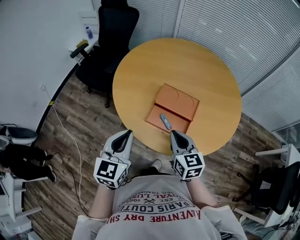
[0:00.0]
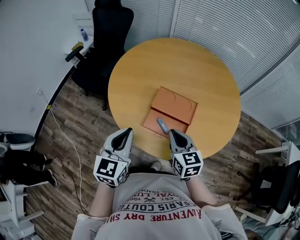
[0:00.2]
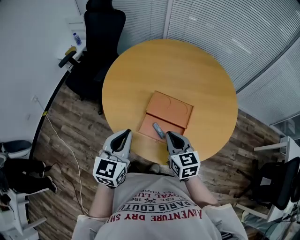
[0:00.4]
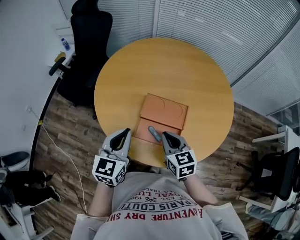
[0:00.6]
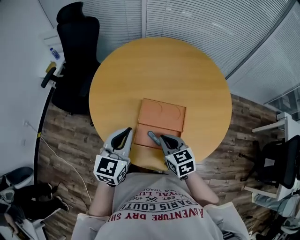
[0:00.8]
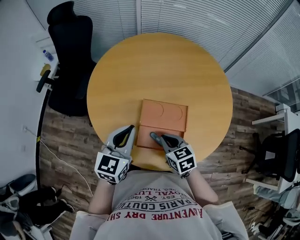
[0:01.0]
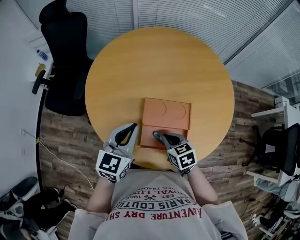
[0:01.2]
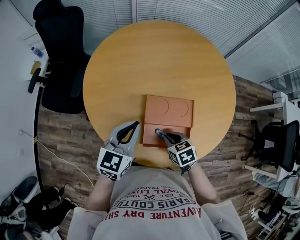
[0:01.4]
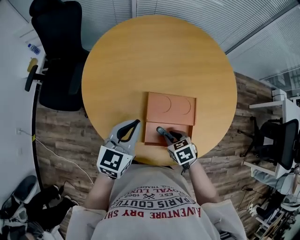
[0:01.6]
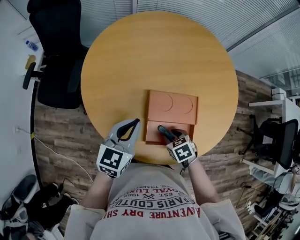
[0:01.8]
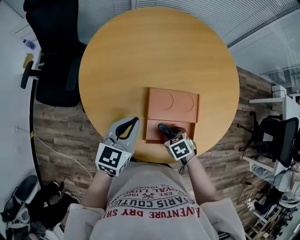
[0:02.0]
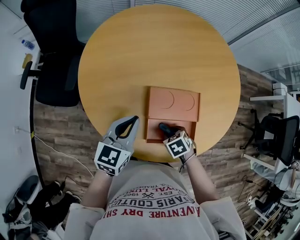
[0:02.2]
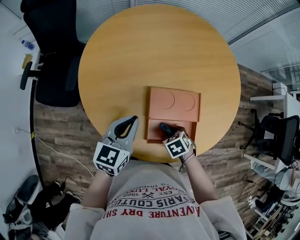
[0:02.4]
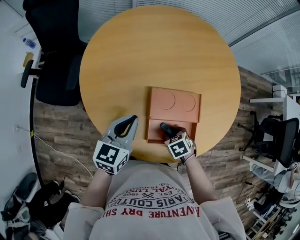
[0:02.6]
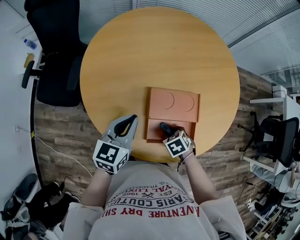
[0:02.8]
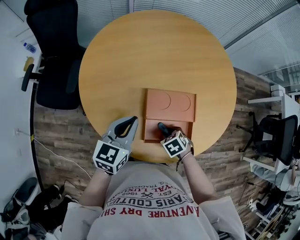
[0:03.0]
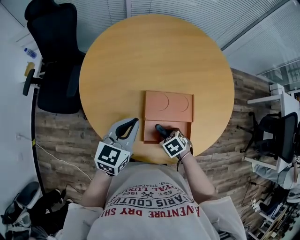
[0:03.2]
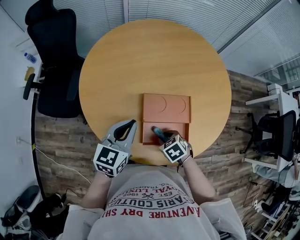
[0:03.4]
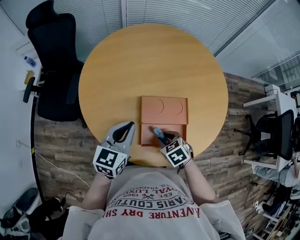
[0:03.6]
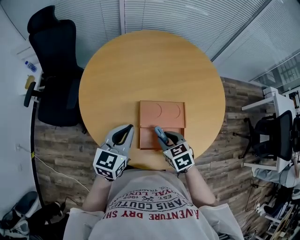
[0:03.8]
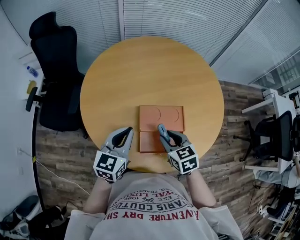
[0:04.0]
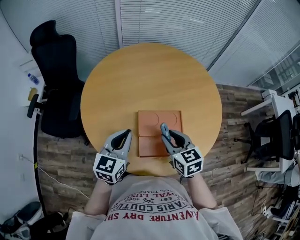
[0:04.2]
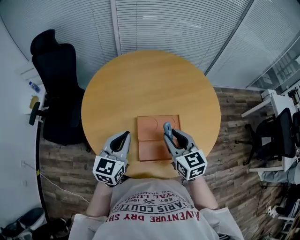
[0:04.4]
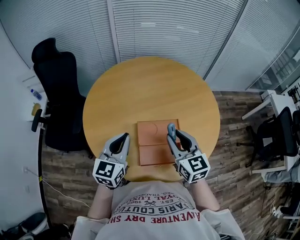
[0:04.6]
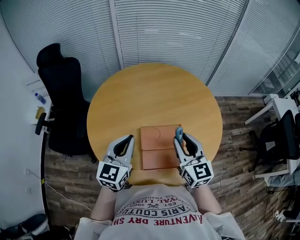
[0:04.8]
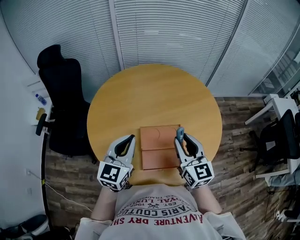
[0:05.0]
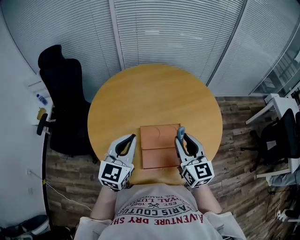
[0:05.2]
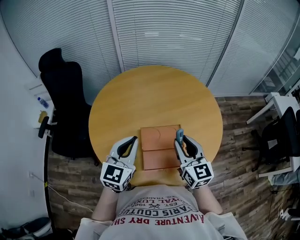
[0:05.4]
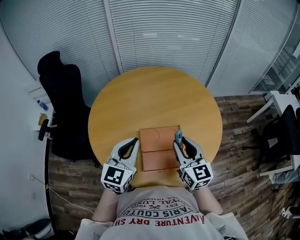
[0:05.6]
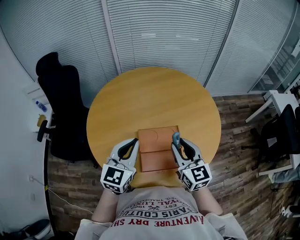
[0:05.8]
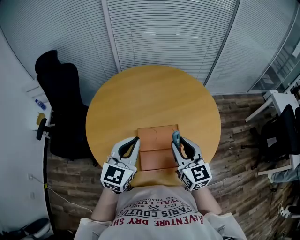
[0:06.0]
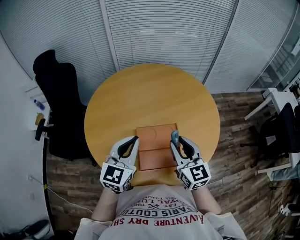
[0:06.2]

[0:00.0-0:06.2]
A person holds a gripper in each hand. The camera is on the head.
0.0 to 1.6 s: The right gripper travels downward and forward by roughly 20 cm, tilts its fingers approximately 40 degrees downward, and opens its fingers. Meanwhile the left gripper goes about 25 cm forward, and turns by roughly 30 degrees.
1.6 to 3.2 s: The grippers make only small movements.
3.2 to 4.6 s: The right gripper goes roughly 30 cm upward, and points its fingers some 60 degrees further upward; the left gripper is displaced upward by some 10 cm.
4.6 to 6.2 s: The left gripper goes approximately 5 cm to the right.

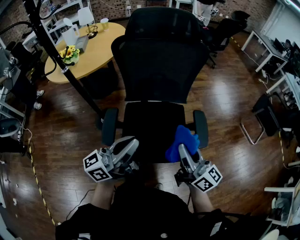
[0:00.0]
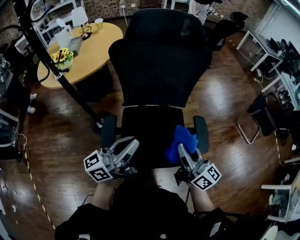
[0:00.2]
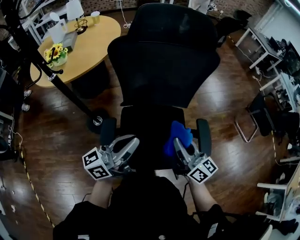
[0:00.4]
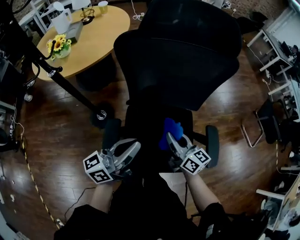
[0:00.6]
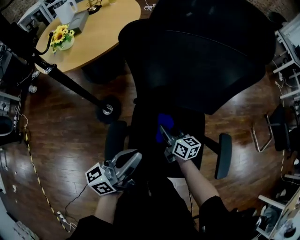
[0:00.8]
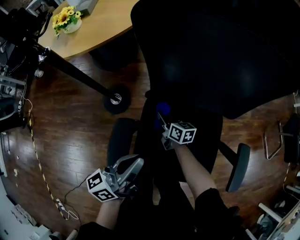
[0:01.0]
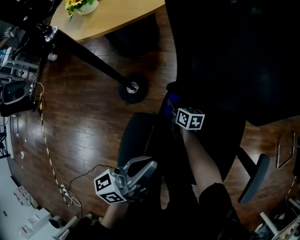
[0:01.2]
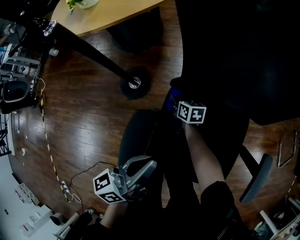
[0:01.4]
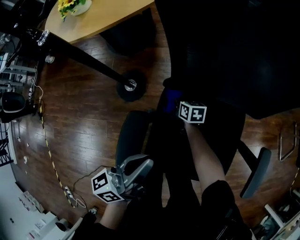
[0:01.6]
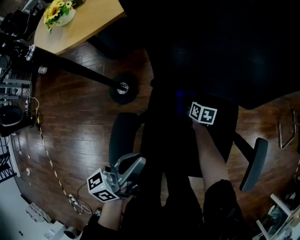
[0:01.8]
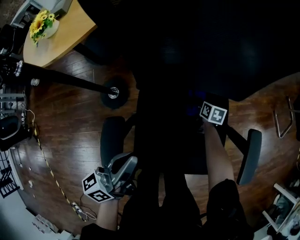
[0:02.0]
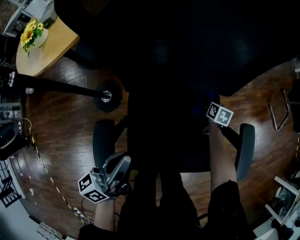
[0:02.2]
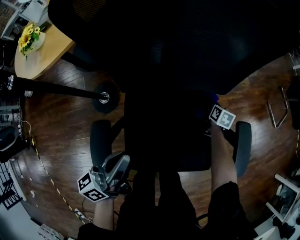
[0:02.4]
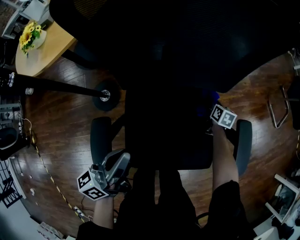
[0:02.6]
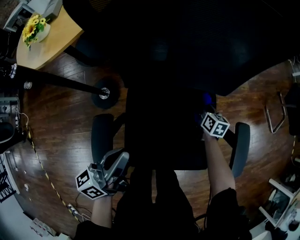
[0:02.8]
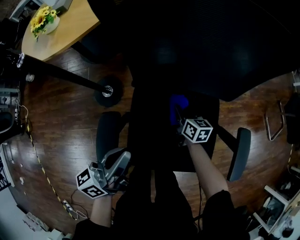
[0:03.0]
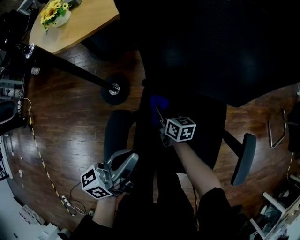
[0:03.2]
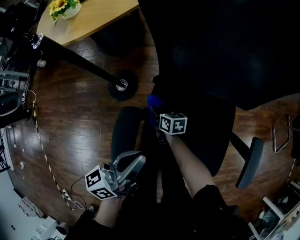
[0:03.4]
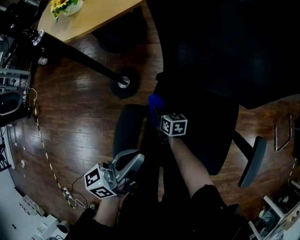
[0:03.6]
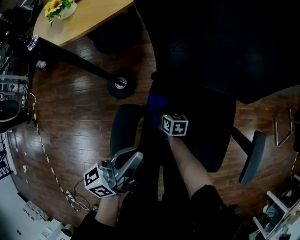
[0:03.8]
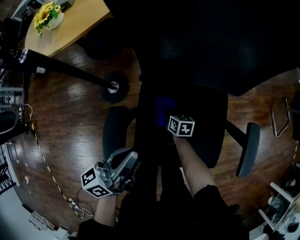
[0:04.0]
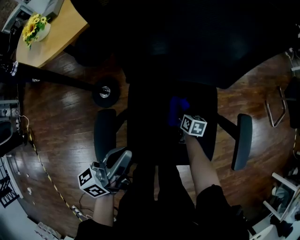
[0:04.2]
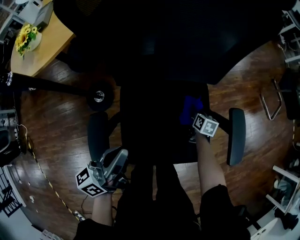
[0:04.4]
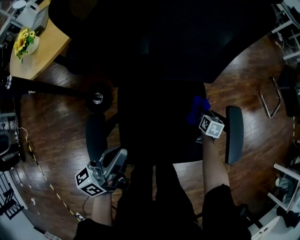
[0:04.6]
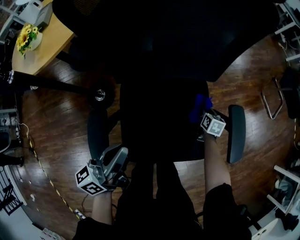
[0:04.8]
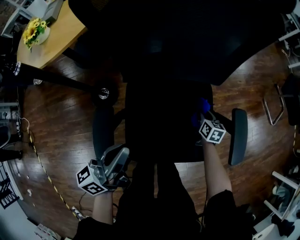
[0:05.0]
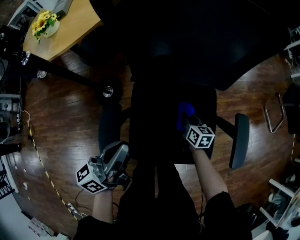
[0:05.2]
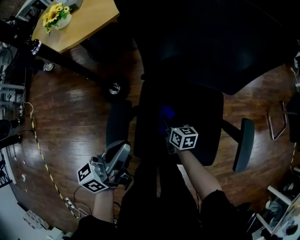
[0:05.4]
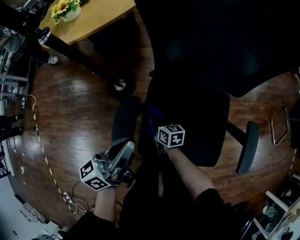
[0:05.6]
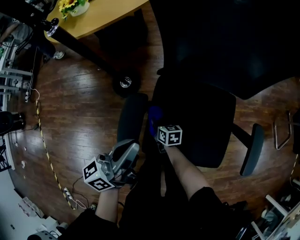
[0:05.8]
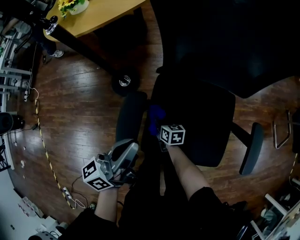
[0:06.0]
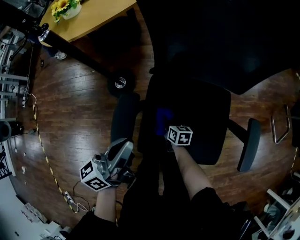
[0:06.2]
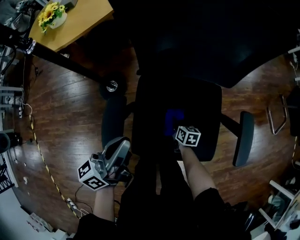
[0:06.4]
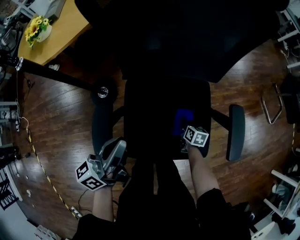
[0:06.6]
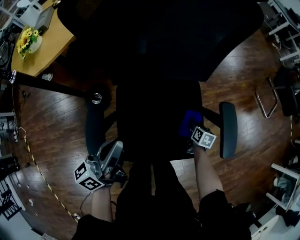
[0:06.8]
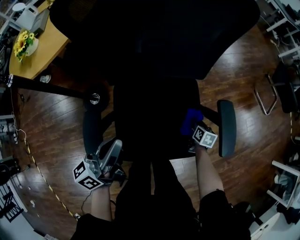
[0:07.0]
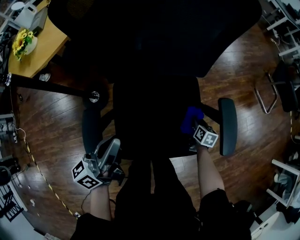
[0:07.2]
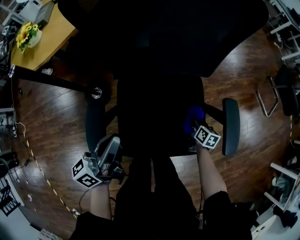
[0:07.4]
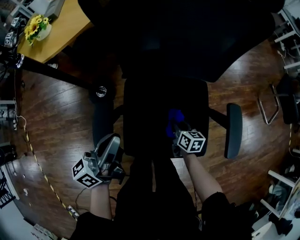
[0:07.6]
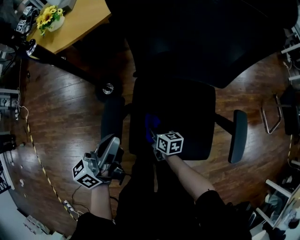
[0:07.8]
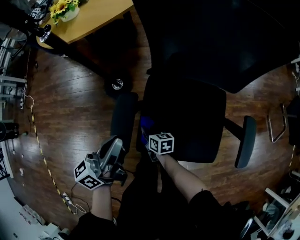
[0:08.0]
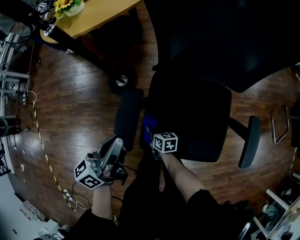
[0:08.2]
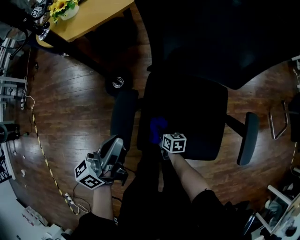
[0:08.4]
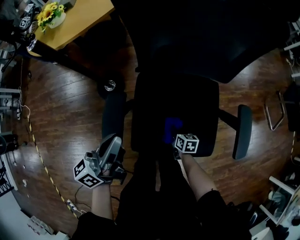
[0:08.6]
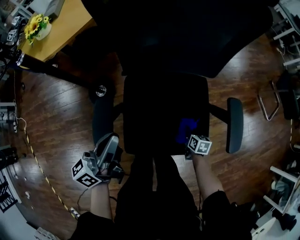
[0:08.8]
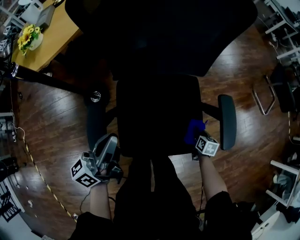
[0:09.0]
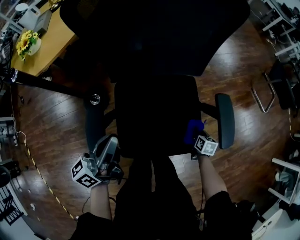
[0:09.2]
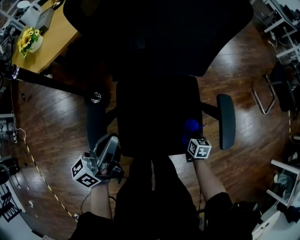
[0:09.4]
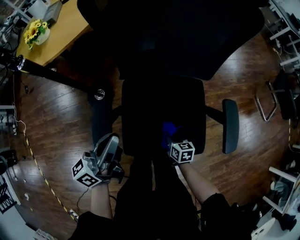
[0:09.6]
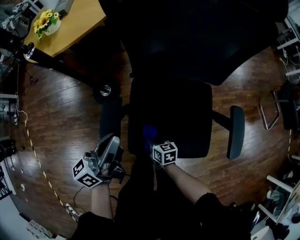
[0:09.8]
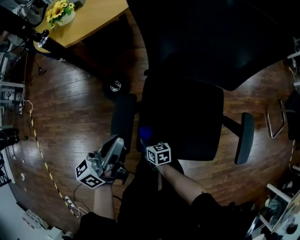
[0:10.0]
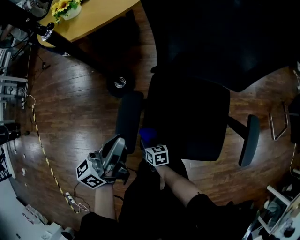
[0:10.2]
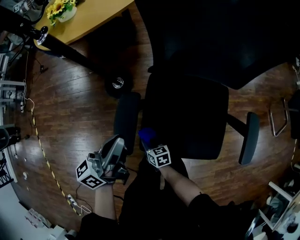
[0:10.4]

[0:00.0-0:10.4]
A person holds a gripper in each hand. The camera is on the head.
0.0 to 1.4 s: The right gripper heads downward, forward and to the left, covering approximately 70 cm, and angles its fingers downward, by some 50 degrees; the left gripper moves downward, forward and to the left, about 35 cm, and rotates some 30 degrees.
3.0 to 4.4 s: The right gripper ends up about 20 cm from where it was, and turns by some 30 degrees.
4.4 to 6.0 s: The right gripper travels upward and back again, roughly 10 cm each way, and turns by about 40 degrees. Meanwhile the left gripper ends up some 10 cm from where it was.
6.0 to 7.4 s: The right gripper changes place by some 35 cm, and swivels some 30 degrees, while the left gripper ends up about 10 cm from where it was.
9.0 to 10.4 s: The right gripper ends up about 40 cm from where it was, and turns by some 40 degrees. Meanwhile the left gripper shifts by about 10 cm.

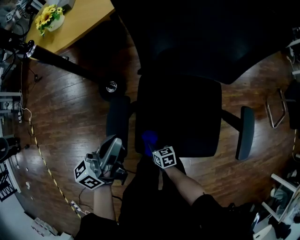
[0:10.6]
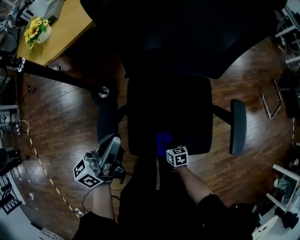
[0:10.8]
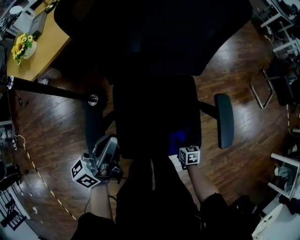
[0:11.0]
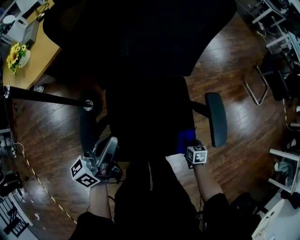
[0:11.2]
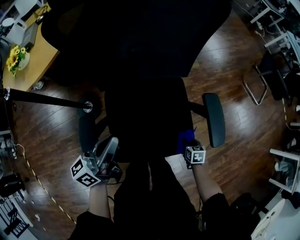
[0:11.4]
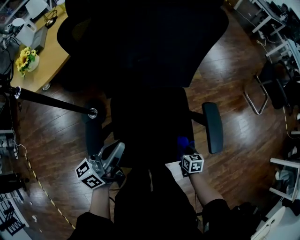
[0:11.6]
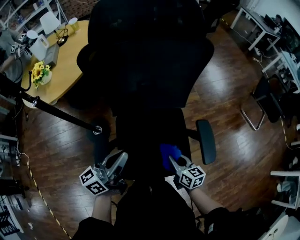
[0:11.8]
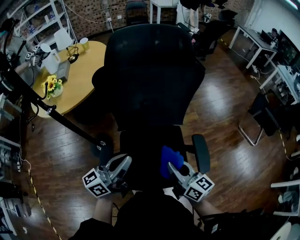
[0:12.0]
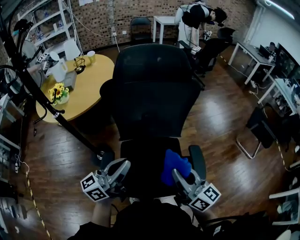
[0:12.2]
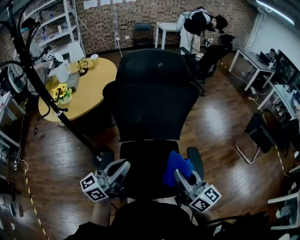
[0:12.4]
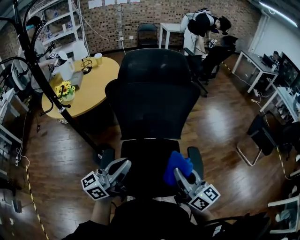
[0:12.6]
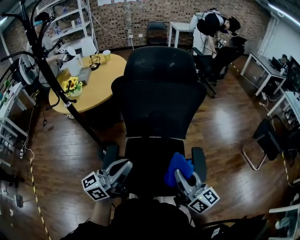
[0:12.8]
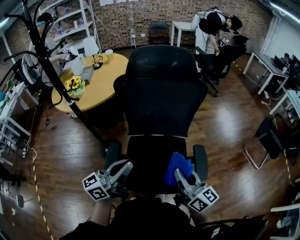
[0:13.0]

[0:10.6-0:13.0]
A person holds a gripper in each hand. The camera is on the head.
10.6 to 11.8 s: The left gripper changes place by roughly 15 cm. The right gripper shifts about 25 cm upward, and rotates some 30 degrees.
11.8 to 13.0 s: The left gripper moves upward and backward, approximately 15 cm; the right gripper is displaced upward by roughly 30 cm, and tips its fingers upward by approximately 30 degrees.

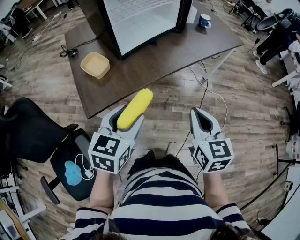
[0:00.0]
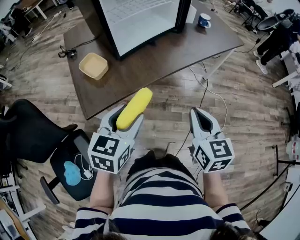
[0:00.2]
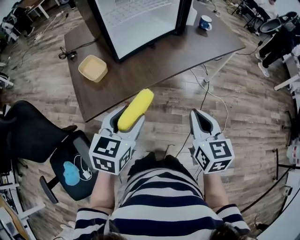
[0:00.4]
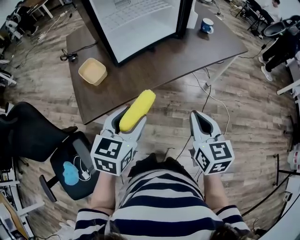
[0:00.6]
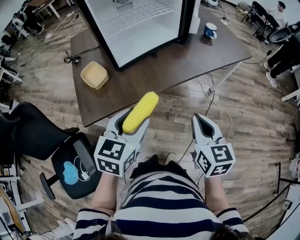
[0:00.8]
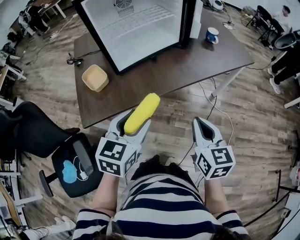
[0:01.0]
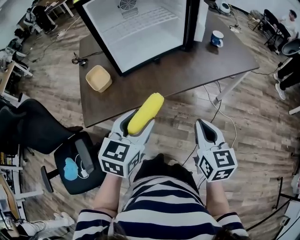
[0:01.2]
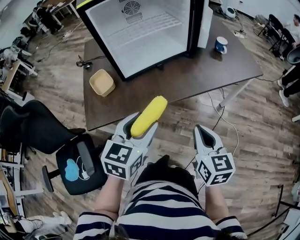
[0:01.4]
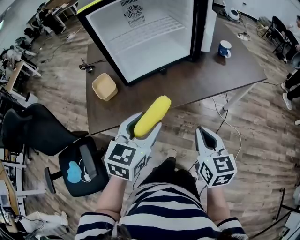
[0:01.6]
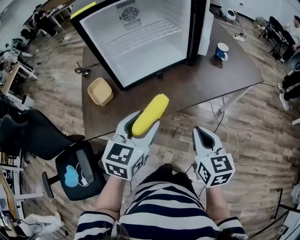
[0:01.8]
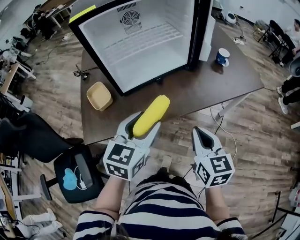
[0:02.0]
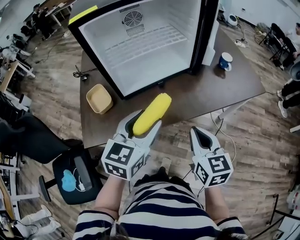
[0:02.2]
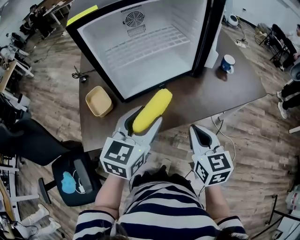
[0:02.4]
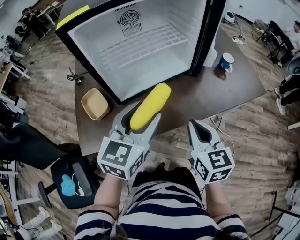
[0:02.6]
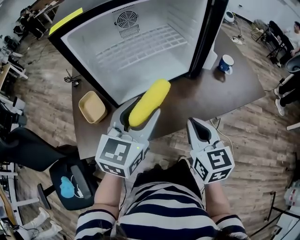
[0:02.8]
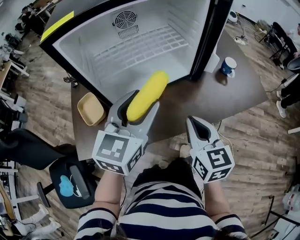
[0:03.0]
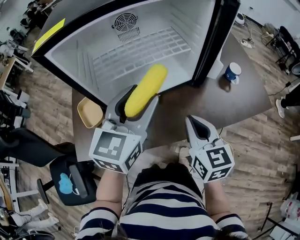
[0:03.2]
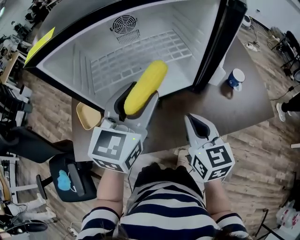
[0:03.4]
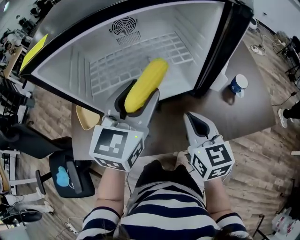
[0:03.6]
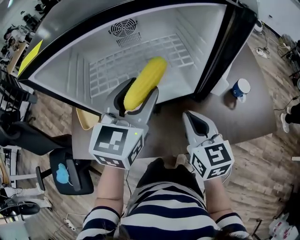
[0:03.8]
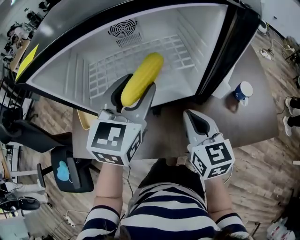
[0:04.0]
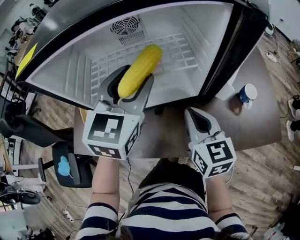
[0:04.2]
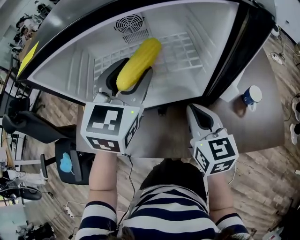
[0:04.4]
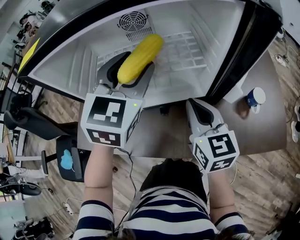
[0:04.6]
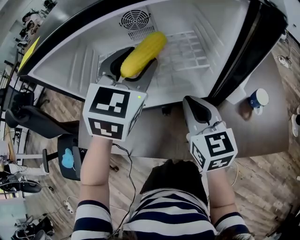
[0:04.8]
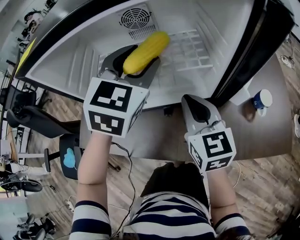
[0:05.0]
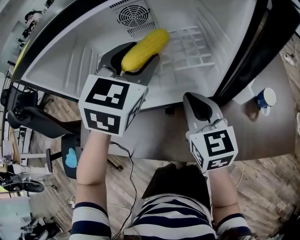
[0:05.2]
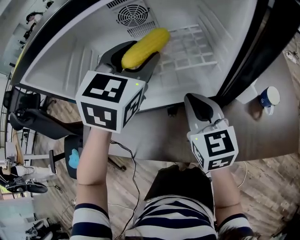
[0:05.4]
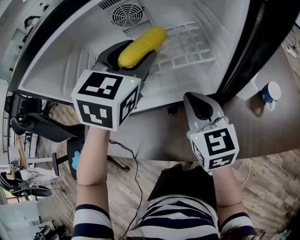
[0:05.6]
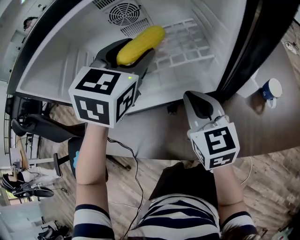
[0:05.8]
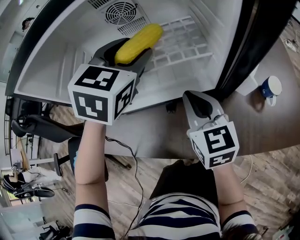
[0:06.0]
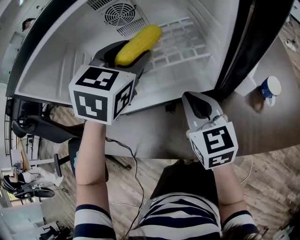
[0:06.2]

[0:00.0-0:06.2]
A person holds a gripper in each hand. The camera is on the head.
0.0 to 1.6 s: The right gripper travels forward and to the right by roughly 15 cm. Meanwhile the left gripper shifts roughly 20 cm to the right and forward.
1.6 to 3.2 s: The two grippers go some 25 cm forward.
3.2 to 4.6 s: The two grippers go about 15 cm forward. The left gripper changes its angle by roughly 30 degrees.
4.6 to 6.2 s: The left gripper travels forward and downward by some 5 cm. The right gripper shifts by about 5 cm.
